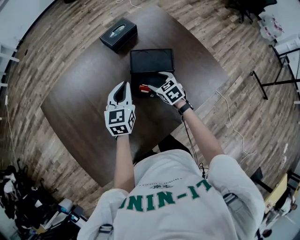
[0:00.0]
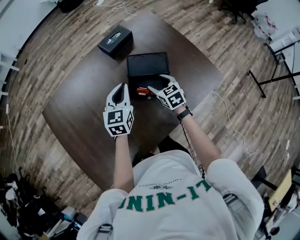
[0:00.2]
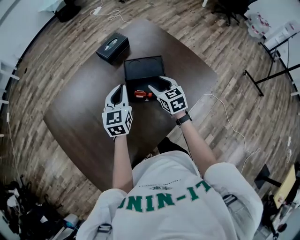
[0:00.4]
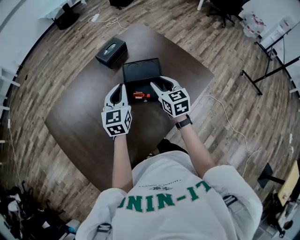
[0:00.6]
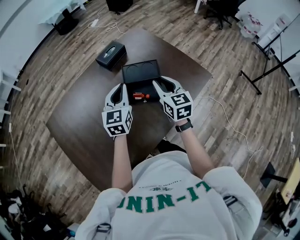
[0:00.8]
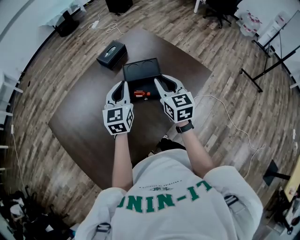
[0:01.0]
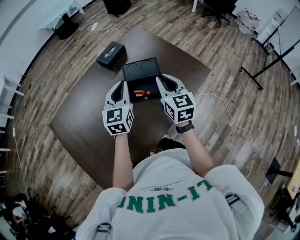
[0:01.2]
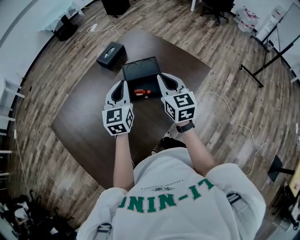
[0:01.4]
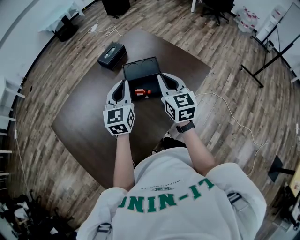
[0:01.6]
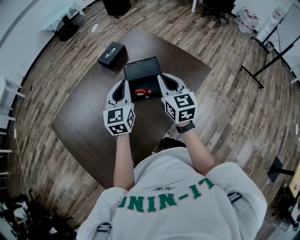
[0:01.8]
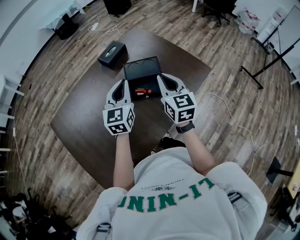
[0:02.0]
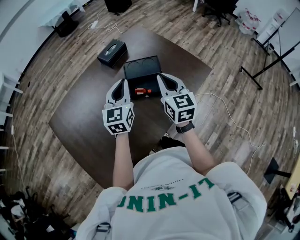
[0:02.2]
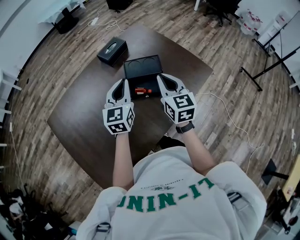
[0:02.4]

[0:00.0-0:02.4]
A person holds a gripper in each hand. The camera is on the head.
0:00.0 to 0:01.2: The right gripper shifts some 30 cm upward and backward, tilts its fingers approximately 30 degrees upward, and closes, while the left gripper shifts about 15 cm upward and backward.
0:01.2 to 0:02.4: The grippers move only a little.

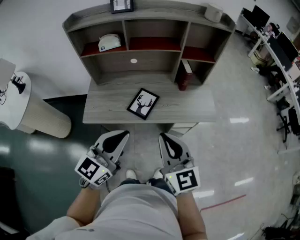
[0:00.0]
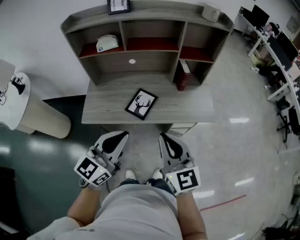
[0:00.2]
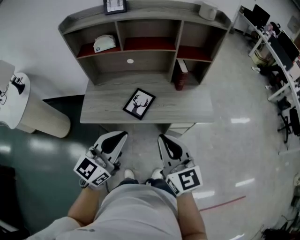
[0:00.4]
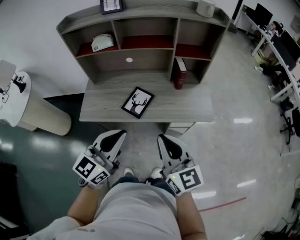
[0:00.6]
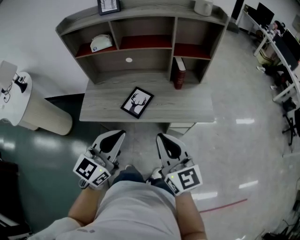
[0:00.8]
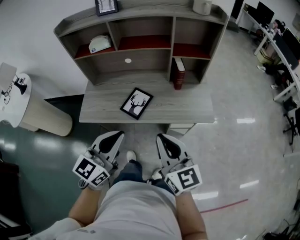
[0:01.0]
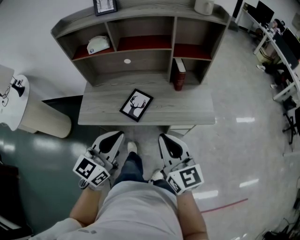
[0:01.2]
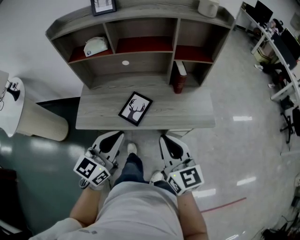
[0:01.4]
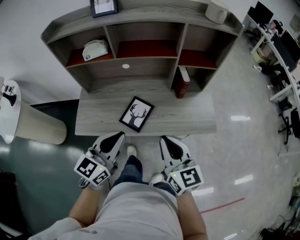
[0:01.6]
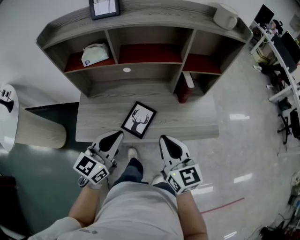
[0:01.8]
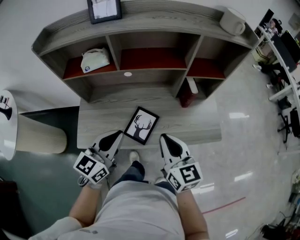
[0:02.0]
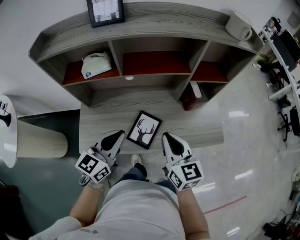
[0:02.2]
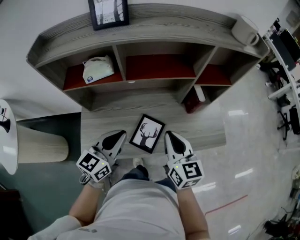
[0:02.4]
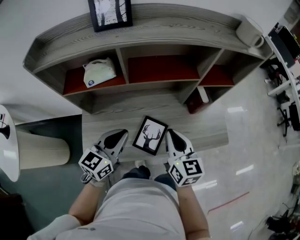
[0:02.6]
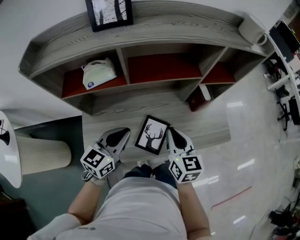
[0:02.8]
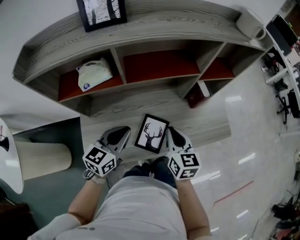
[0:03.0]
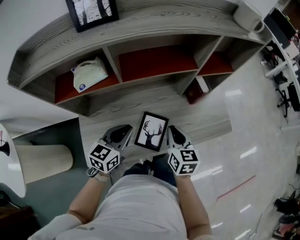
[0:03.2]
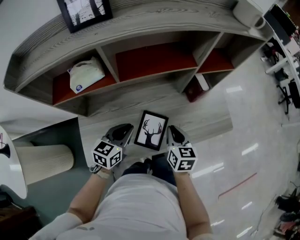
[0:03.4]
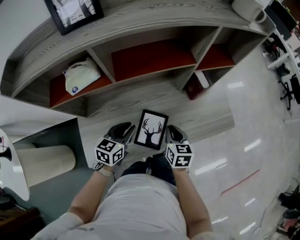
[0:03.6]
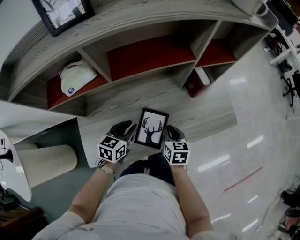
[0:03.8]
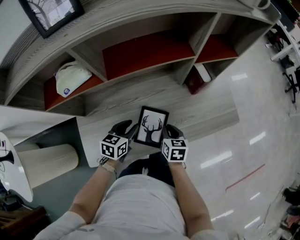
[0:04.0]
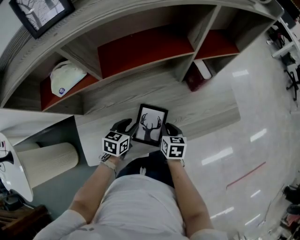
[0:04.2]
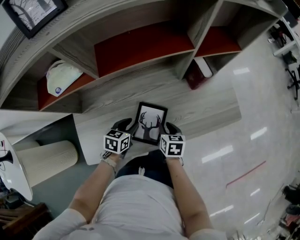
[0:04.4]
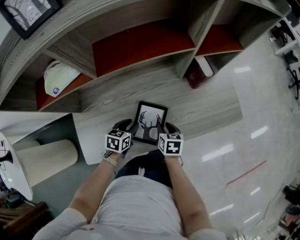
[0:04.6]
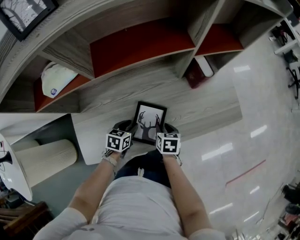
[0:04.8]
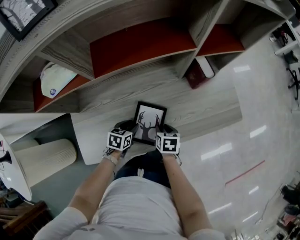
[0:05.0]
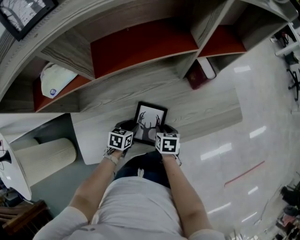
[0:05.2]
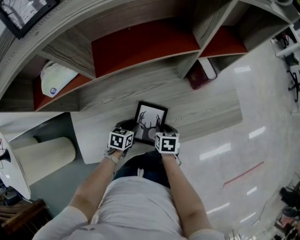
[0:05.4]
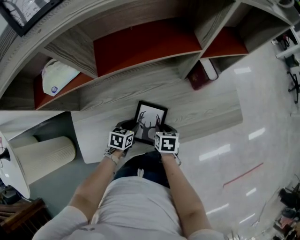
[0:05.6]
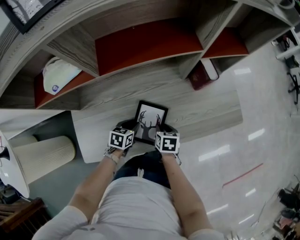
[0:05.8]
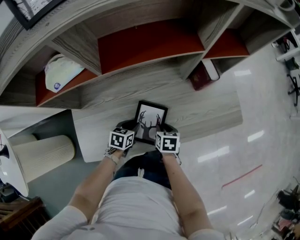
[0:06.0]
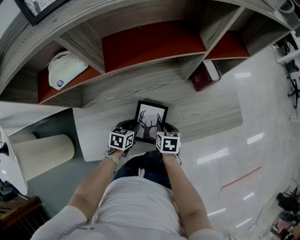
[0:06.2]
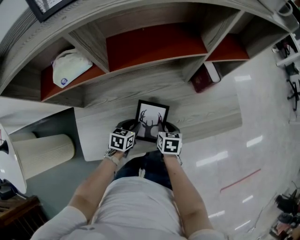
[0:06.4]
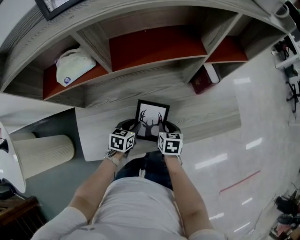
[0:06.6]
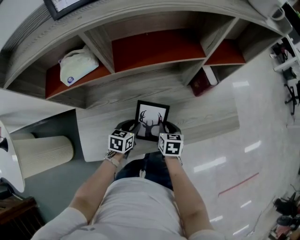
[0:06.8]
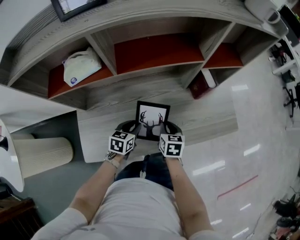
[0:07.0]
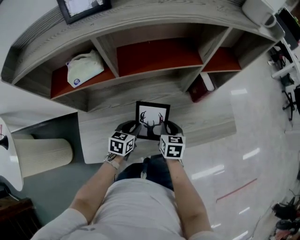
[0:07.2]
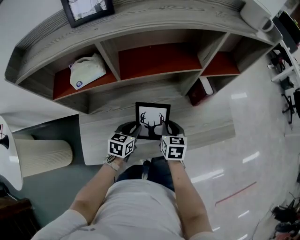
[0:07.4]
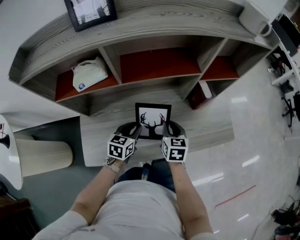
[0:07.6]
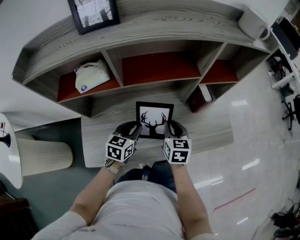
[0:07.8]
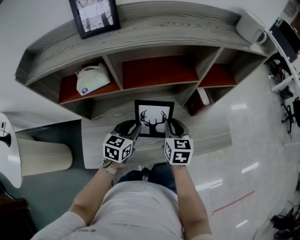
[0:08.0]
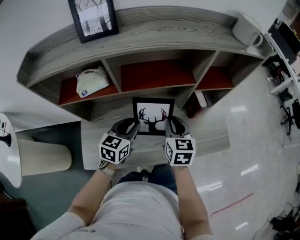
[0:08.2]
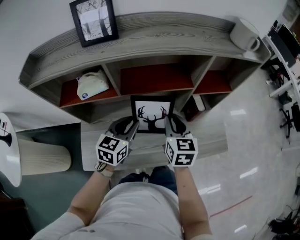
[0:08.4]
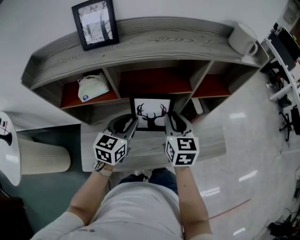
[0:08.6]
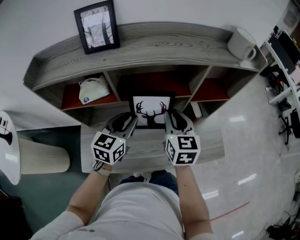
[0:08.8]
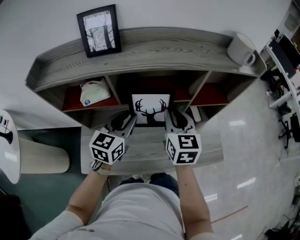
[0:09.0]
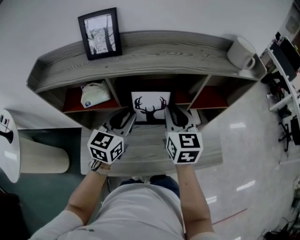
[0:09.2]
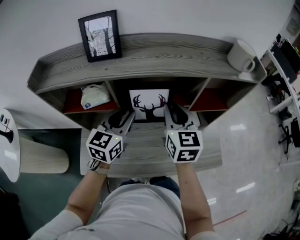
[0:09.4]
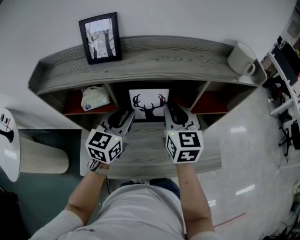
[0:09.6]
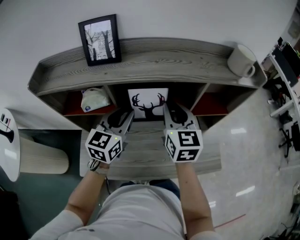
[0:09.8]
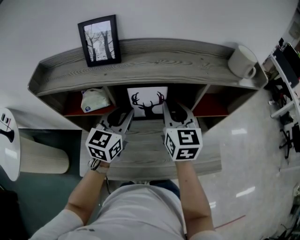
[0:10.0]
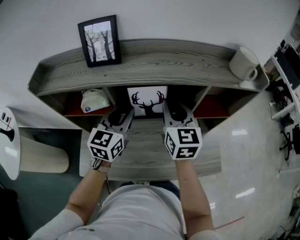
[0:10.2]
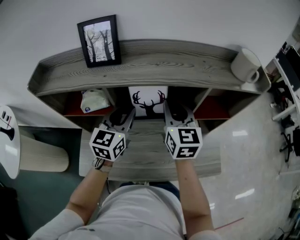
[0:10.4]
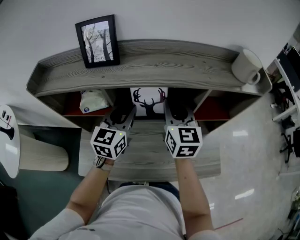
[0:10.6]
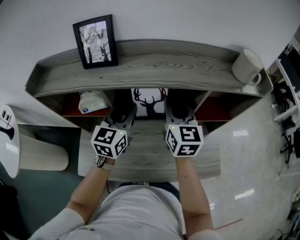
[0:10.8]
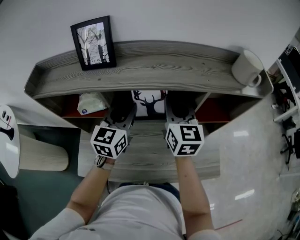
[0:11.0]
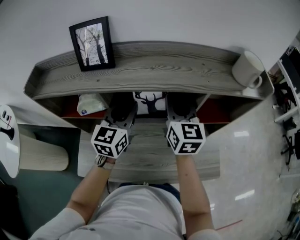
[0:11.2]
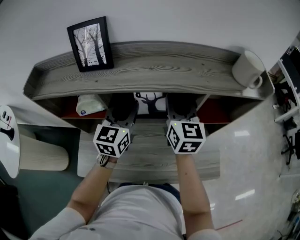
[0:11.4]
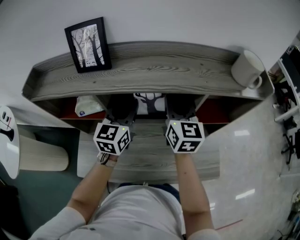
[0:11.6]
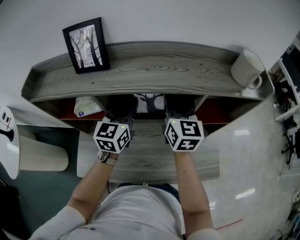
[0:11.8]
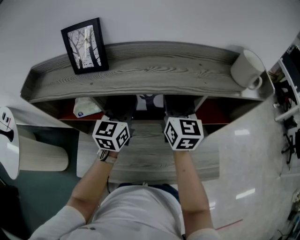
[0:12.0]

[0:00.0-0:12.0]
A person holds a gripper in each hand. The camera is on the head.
0:00.0 to 0:01.6: The two grippers go roughly 15 cm forward and downward.
0:01.6 to 0:03.0: The grippers both shift forward, to the left and downward by approximately 25 cm. The right gripper rotates approximately 30 degrees.
0:03.0 to 0:04.4: The grippers both shift downward by roughly 25 cm. The left gripper turns by approximately 30 degrees, and opens its fingers; the right gripper changes its angle by about 30 degrees.
0:04.4 to 0:06.0: The left gripper moves downward, about 5 cm.
0:06.0 to 0:07.6: The two grippers go roughly 15 cm upward. The right gripper swivels about 30 degrees; the left gripper turns by some 20 degrees.
0:07.6 to 0:09.0: Both grippers travel together upward, some 25 cm. The right gripper turns by some 20 degrees. The left gripper turns by roughly 20 degrees.
0:09.0 to 0:10.4: Both grippers travel together forward, approximately 5 cm.
0:10.4 to 0:12.0: The grippers both shift forward by approximately 5 cm.

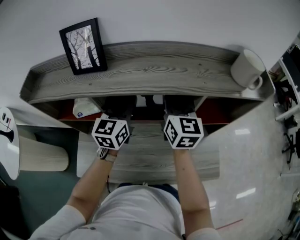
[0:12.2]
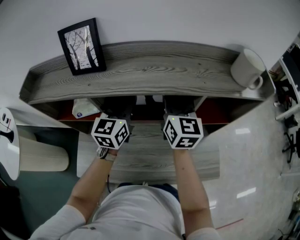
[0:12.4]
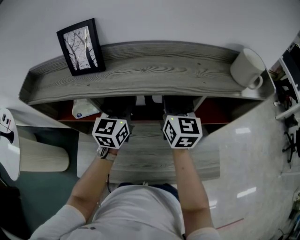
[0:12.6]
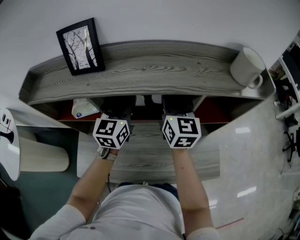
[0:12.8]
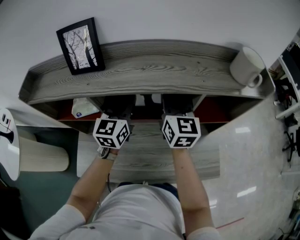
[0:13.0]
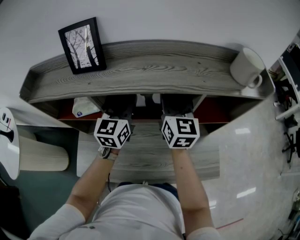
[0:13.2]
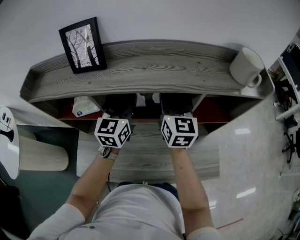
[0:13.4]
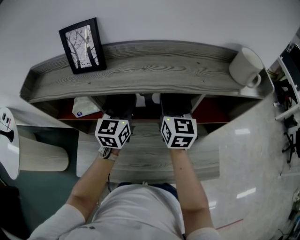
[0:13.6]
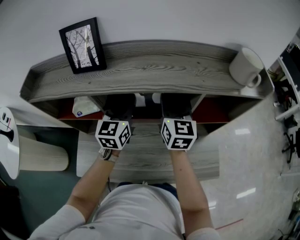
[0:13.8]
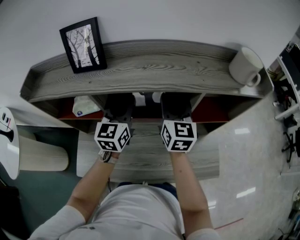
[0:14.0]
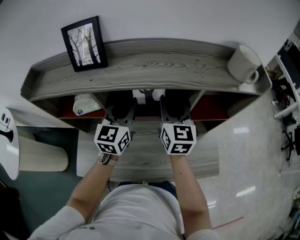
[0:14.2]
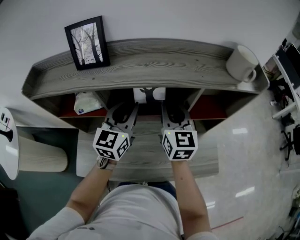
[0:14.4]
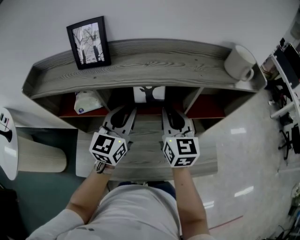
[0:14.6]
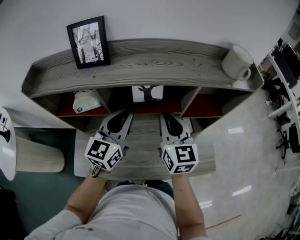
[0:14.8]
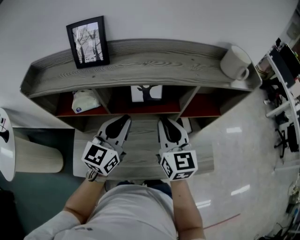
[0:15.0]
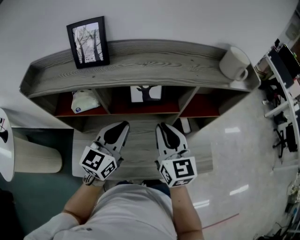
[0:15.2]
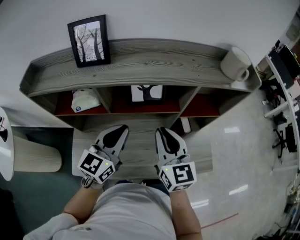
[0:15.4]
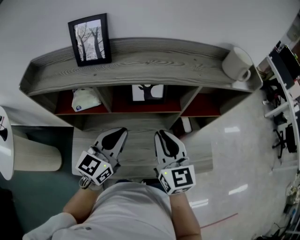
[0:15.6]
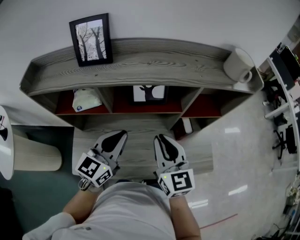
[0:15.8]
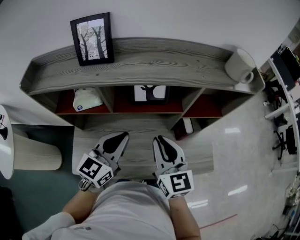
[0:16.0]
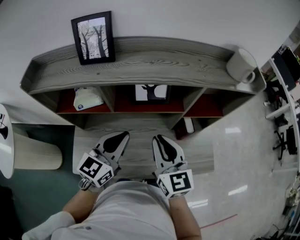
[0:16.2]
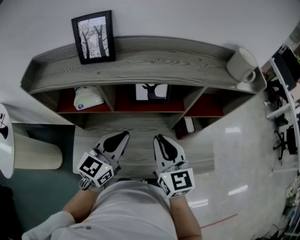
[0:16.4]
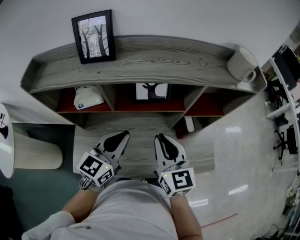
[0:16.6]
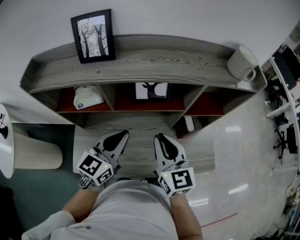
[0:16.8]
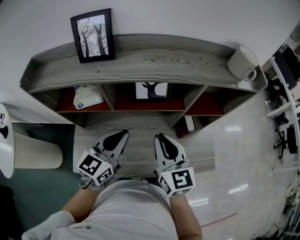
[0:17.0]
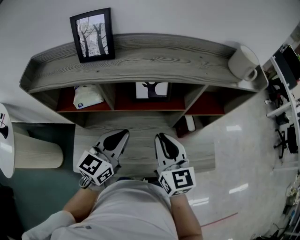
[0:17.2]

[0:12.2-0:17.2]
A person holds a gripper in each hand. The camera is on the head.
0:12.2 to 0:13.8: The grippers stay close to where they were, moving slightly.
0:13.8 to 0:15.6: The two grippers go some 20 cm backward. The left gripper swivels some 20 degrees, and closes its fingers.
0:15.6 to 0:17.2: There are only small adjustments of the grippers.

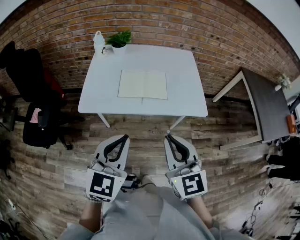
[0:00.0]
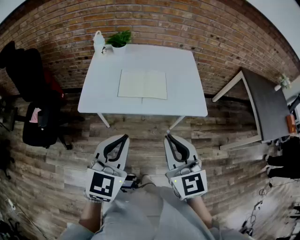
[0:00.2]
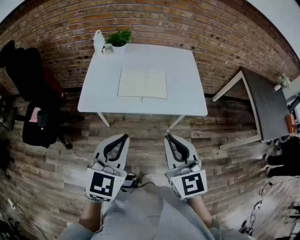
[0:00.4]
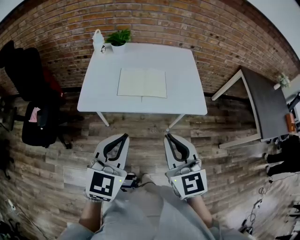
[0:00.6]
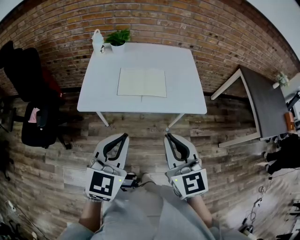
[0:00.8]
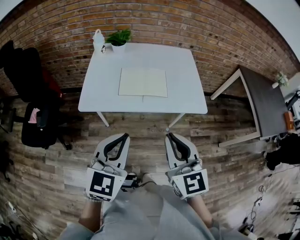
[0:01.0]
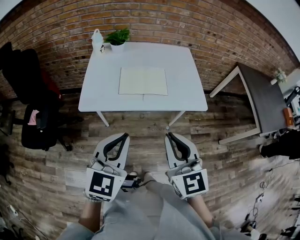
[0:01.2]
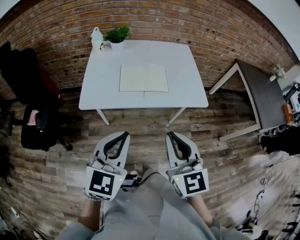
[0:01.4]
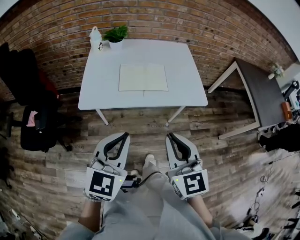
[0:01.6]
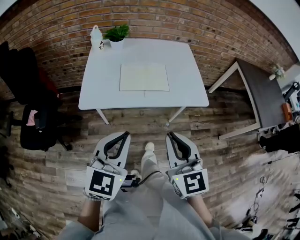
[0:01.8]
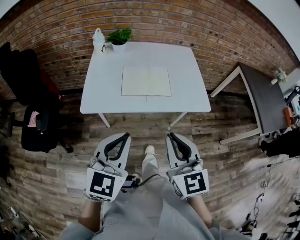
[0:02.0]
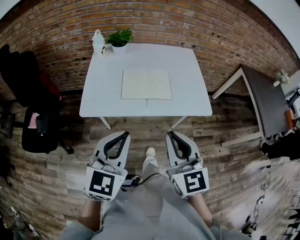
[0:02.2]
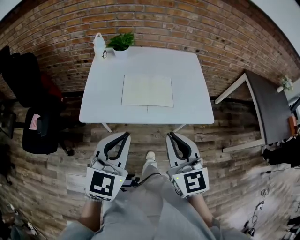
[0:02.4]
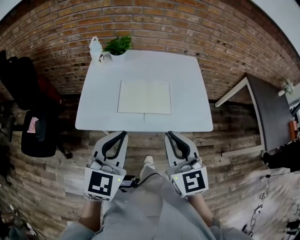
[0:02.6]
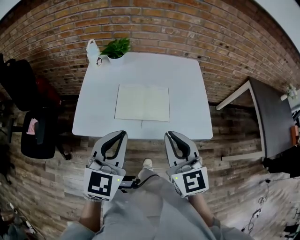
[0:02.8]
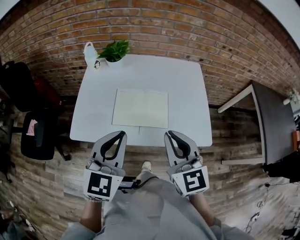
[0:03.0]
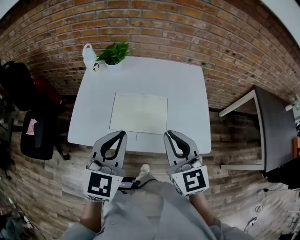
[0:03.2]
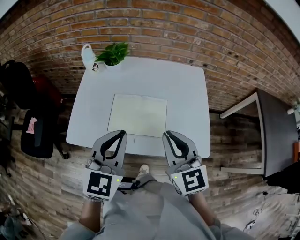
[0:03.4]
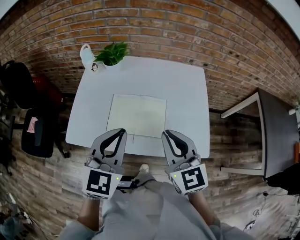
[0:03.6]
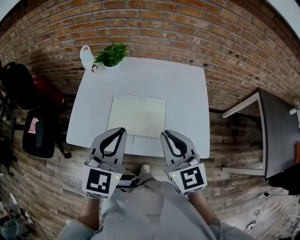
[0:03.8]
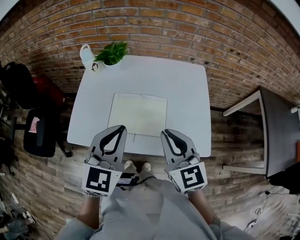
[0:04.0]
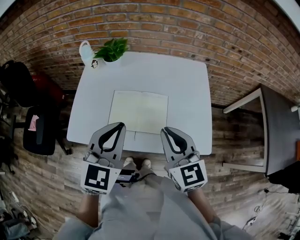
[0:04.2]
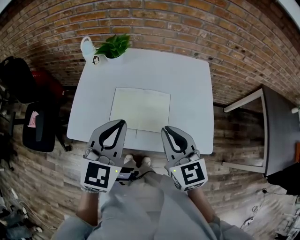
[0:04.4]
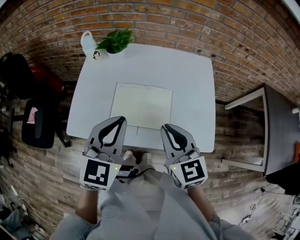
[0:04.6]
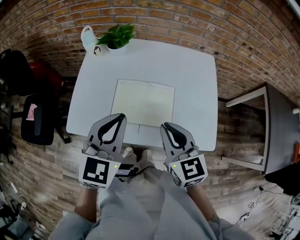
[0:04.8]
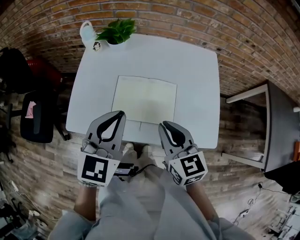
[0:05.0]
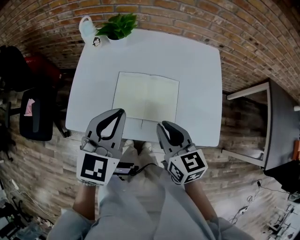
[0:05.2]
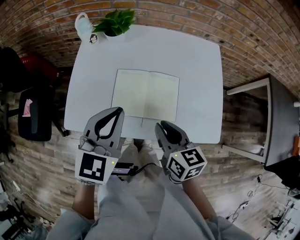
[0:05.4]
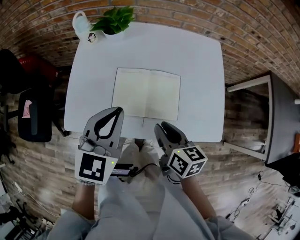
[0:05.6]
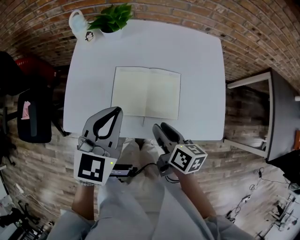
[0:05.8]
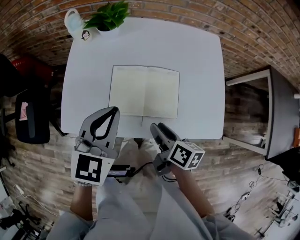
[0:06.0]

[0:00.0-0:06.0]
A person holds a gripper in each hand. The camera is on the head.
0:00.0 to 0:01.6: The right gripper moves about 5 cm.
0:01.6 to 0:03.0: Both grippers move forward, some 25 cm.
0:03.0 to 0:04.4: The two grippers go some 10 cm forward.
0:04.4 to 0:06.0: The right gripper is displaced downward by some 20 cm, rolls clockwise, seen from behind, by some 60 degrees, and opens, while the left gripper shifts about 10 cm downward, forward and to the left.
